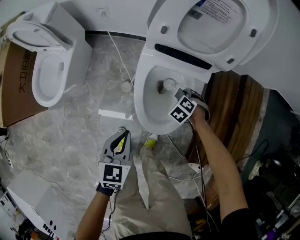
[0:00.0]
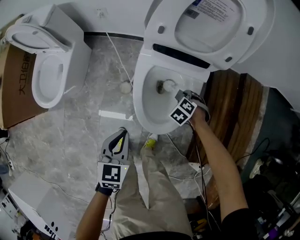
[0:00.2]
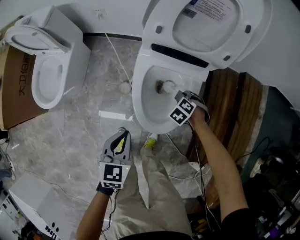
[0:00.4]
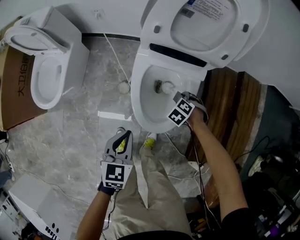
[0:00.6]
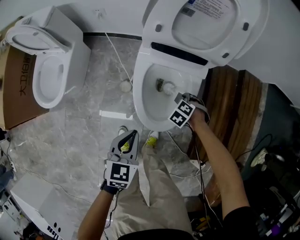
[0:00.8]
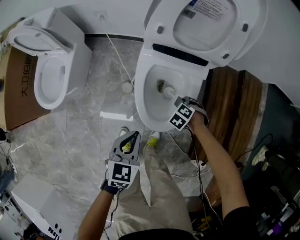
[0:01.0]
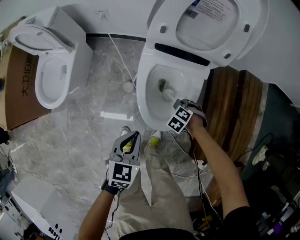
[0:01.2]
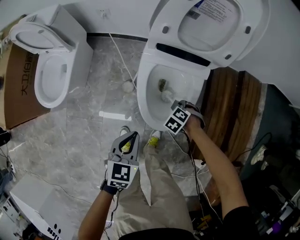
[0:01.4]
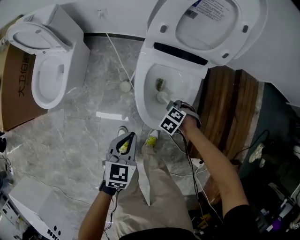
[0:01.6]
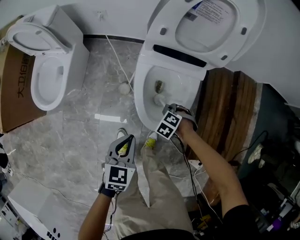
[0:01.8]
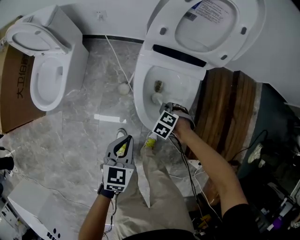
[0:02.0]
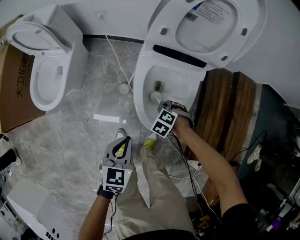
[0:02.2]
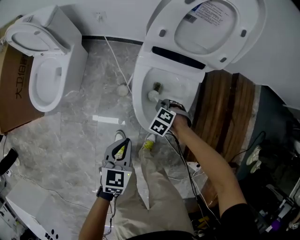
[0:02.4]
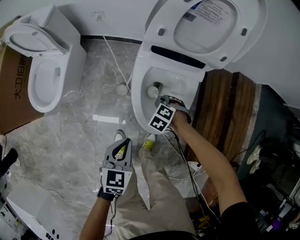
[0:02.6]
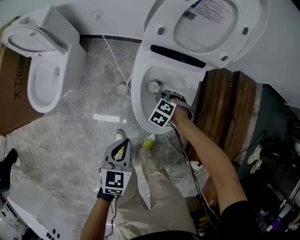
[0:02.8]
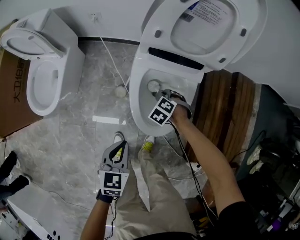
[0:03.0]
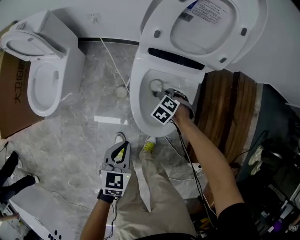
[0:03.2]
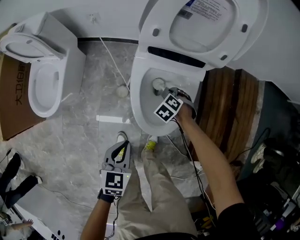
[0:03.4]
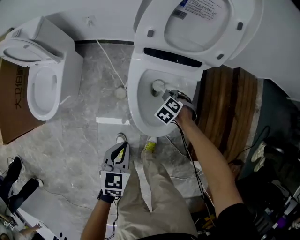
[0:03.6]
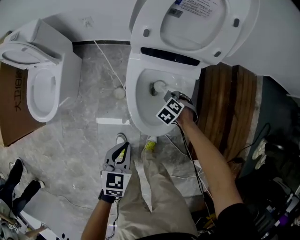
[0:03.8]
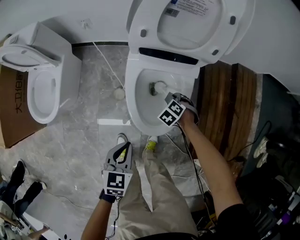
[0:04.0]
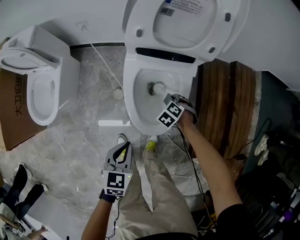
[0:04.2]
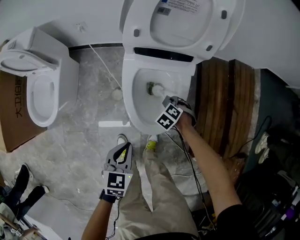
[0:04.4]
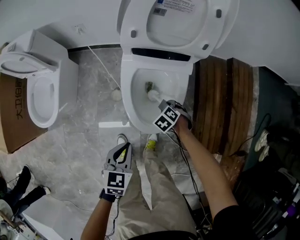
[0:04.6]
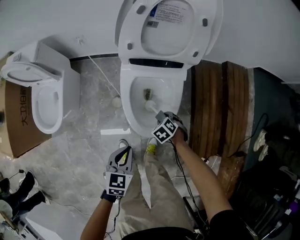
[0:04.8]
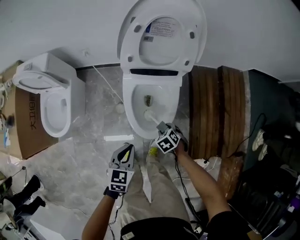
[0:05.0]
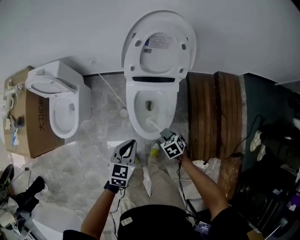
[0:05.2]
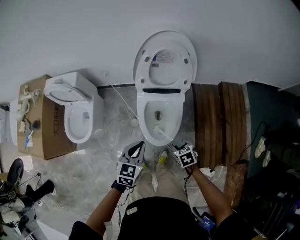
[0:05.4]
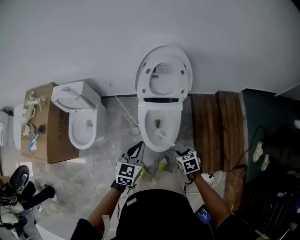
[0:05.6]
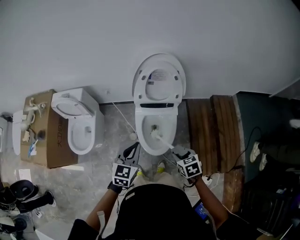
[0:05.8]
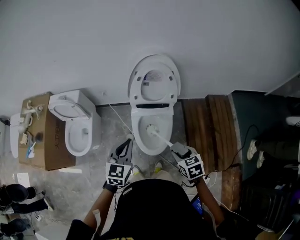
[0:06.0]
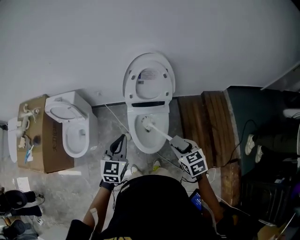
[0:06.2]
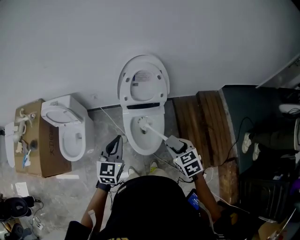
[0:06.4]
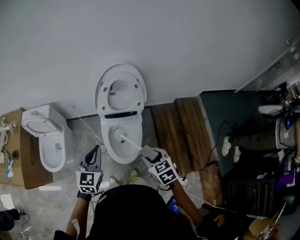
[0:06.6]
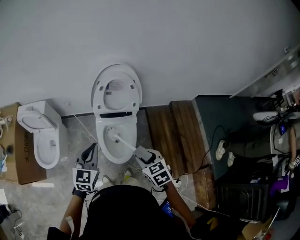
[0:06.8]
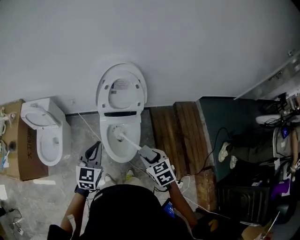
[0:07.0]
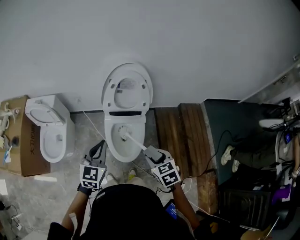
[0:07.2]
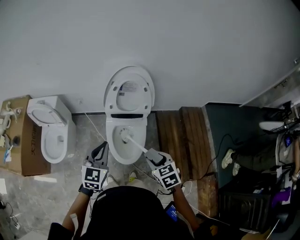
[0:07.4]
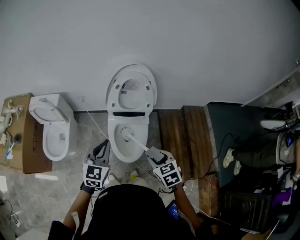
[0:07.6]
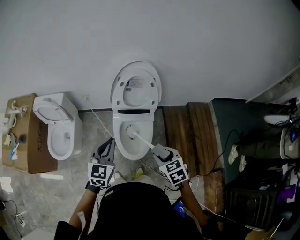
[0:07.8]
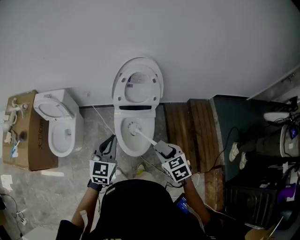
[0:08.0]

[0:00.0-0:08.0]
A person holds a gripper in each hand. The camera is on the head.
4.8 to 6.4 s: The left gripper heads upward, covering some 35 cm, and swivels about 30 degrees.

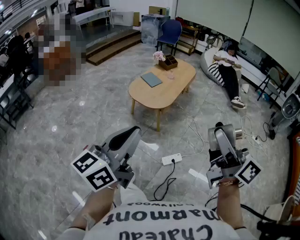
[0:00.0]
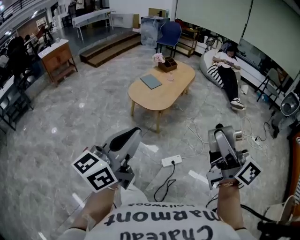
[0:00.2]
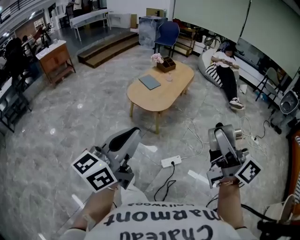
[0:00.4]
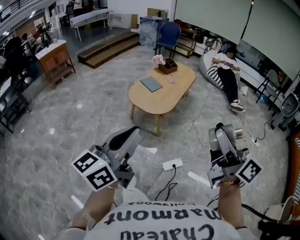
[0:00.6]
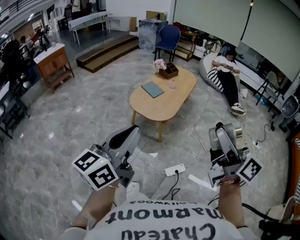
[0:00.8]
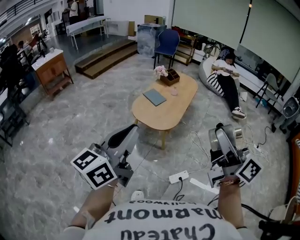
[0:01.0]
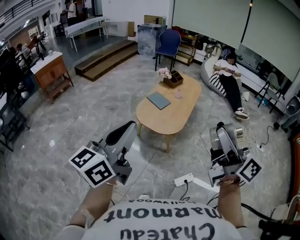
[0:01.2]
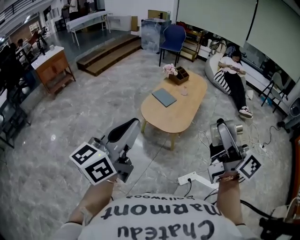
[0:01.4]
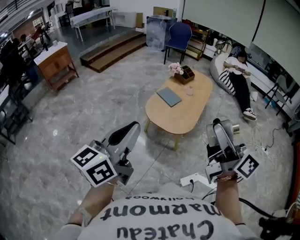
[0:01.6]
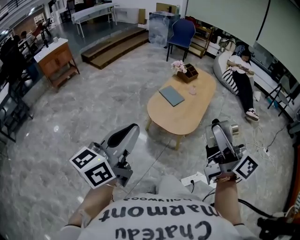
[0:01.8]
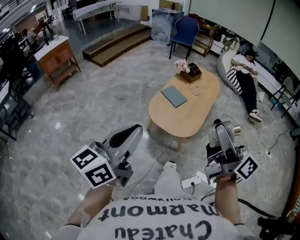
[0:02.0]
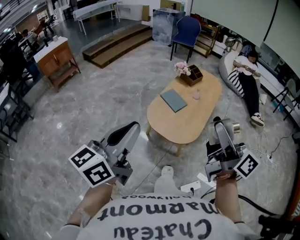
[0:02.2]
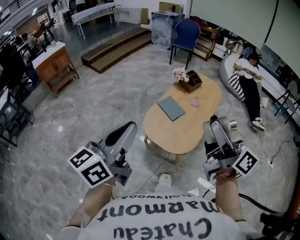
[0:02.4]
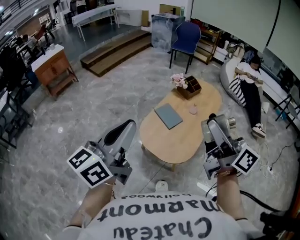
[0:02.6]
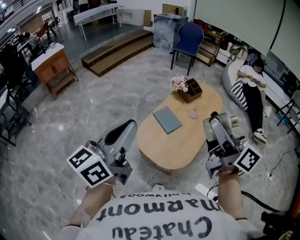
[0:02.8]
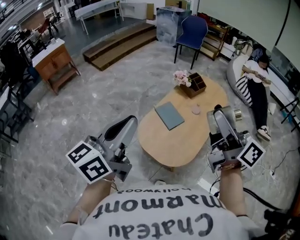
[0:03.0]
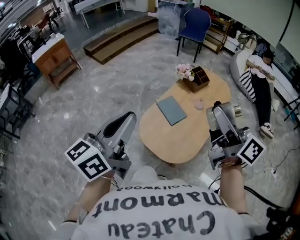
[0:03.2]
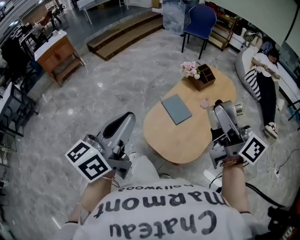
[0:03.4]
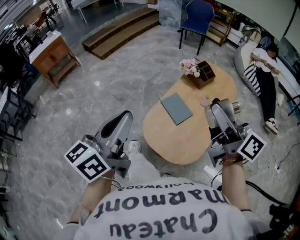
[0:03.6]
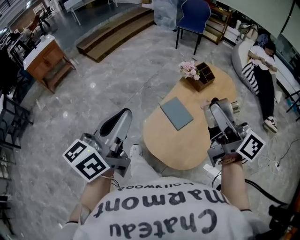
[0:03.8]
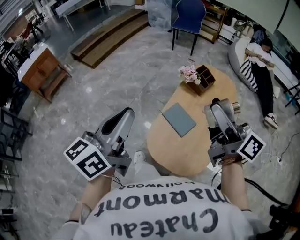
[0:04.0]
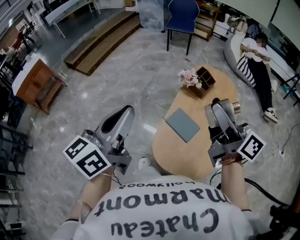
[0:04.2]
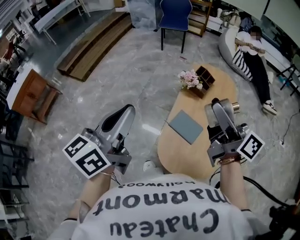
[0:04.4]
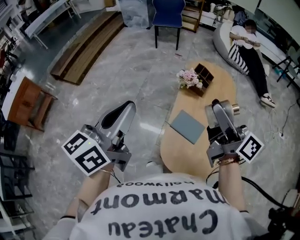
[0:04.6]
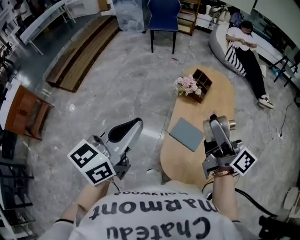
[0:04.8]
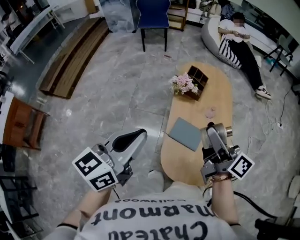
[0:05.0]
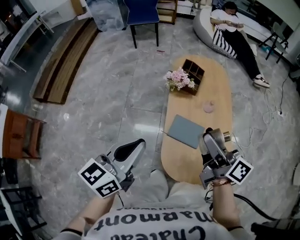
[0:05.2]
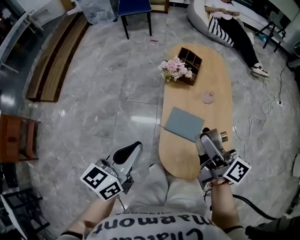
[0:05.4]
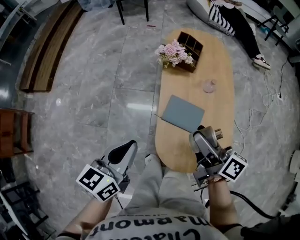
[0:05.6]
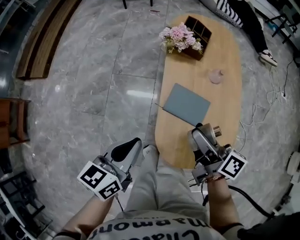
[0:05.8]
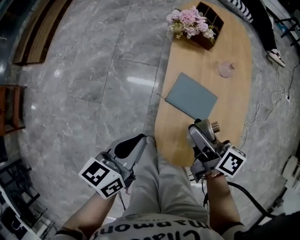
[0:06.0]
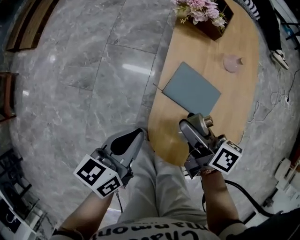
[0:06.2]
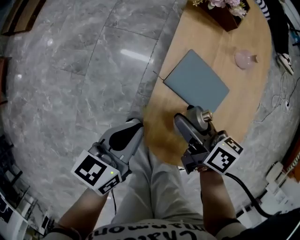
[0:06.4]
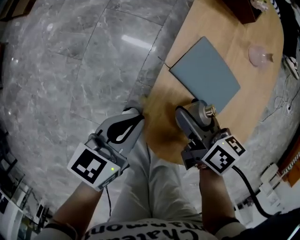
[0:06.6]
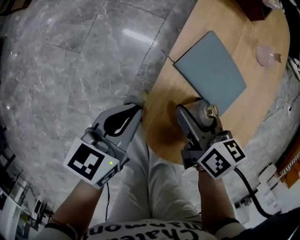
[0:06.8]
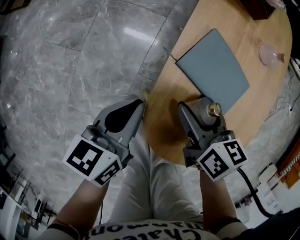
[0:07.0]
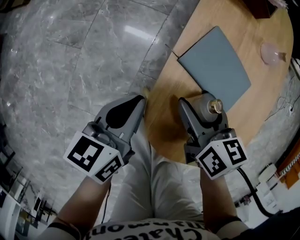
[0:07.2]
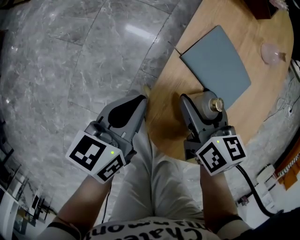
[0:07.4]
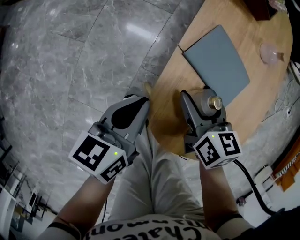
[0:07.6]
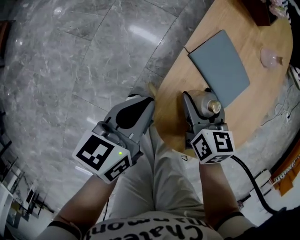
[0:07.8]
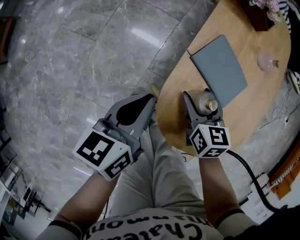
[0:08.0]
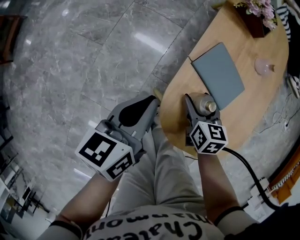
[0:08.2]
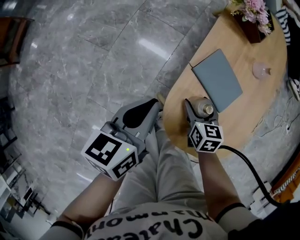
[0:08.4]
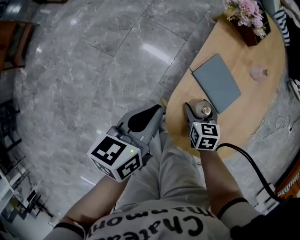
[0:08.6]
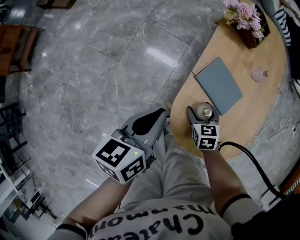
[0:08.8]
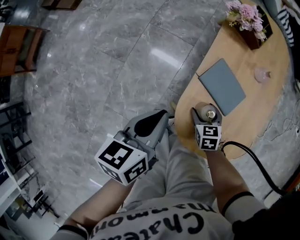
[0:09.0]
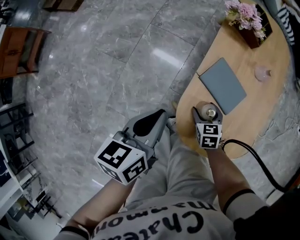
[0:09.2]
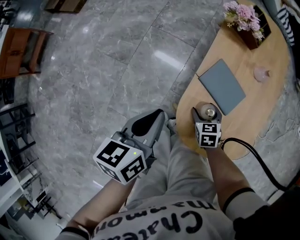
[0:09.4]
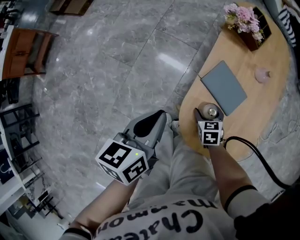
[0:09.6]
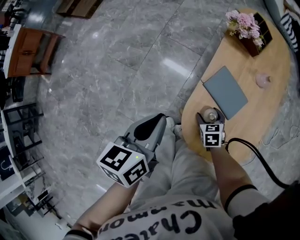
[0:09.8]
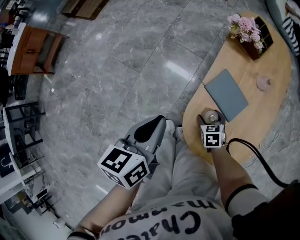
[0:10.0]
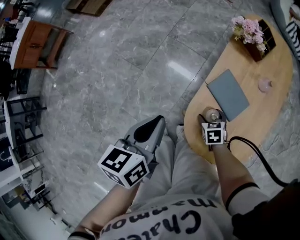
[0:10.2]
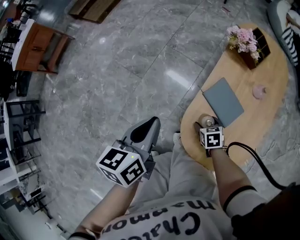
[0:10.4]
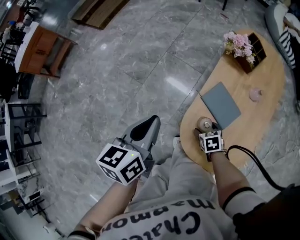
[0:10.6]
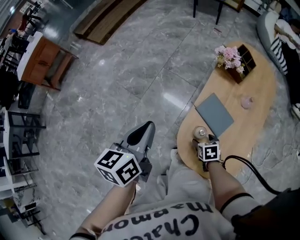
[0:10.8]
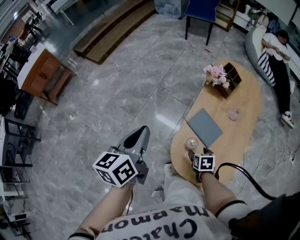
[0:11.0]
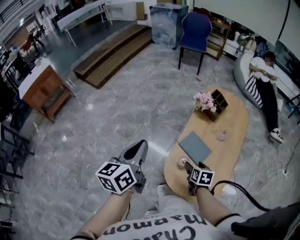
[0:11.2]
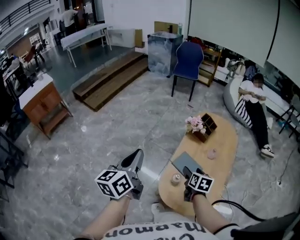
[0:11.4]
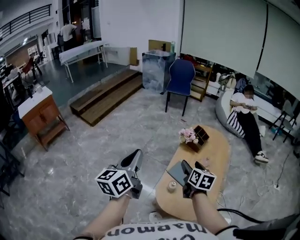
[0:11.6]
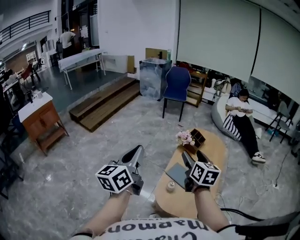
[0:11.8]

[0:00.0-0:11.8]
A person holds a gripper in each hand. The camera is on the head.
0.0 to 1.4 s: The grippers both shift forward and to the left by some 30 cm.
1.4 to 3.0 s: The grippers both shift forward by approximately 35 cm.
3.0 to 4.4 s: The right gripper shifts some 30 cm forward and to the left, while the left gripper moves forward, approximately 30 cm.
4.4 to 6.0 s: Both grippers move downward, about 35 cm. The left gripper rotates about 30 degrees. The right gripper tips its fingers downward by about 30 degrees.
6.0 to 7.4 s: Both grippers move downward, some 20 cm. The right gripper changes its angle by roughly 40 degrees.
7.4 to 8.8 s: The right gripper swivels roughly 30 degrees. Meanwhile the left gripper is displaced upward by some 15 cm.
8.8 to 10.4 s: The left gripper moves upward, approximately 10 cm.
10.4 to 11.8 s: The left gripper heads upward, covering approximately 30 cm, and points its fingers about 40 degrees further upward. Meanwhile the right gripper travels upward by some 50 cm, and tilts its fingers about 50 degrees upward.

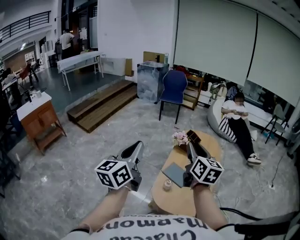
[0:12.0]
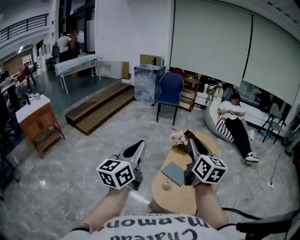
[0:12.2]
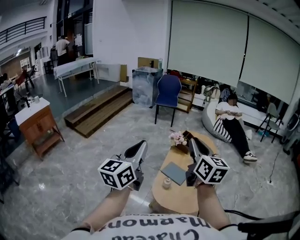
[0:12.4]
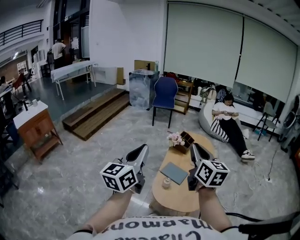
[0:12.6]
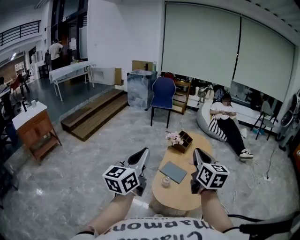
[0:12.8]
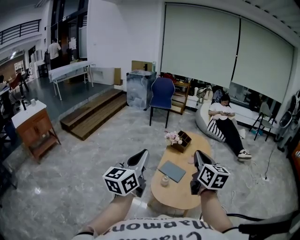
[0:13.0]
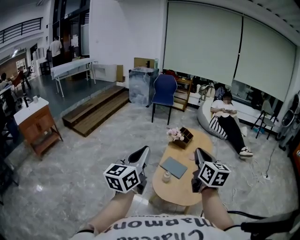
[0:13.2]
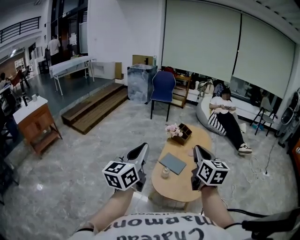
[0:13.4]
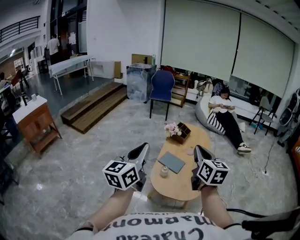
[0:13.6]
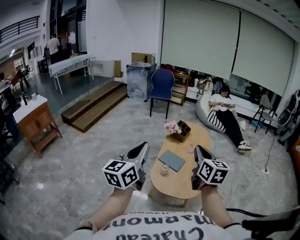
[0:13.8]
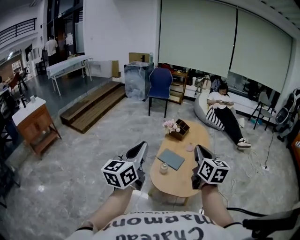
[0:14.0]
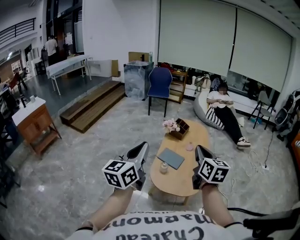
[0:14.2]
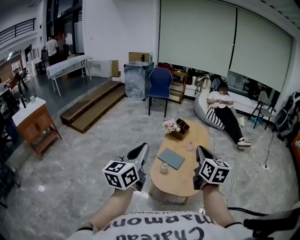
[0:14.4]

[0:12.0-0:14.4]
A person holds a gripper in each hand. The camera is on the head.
12.0 to 13.2 s: The grippers both shift backward by some 15 cm.
13.2 to 14.4 s: The right gripper moves some 5 cm.

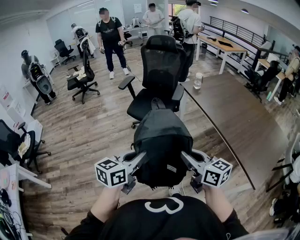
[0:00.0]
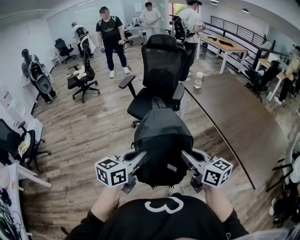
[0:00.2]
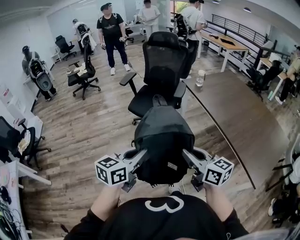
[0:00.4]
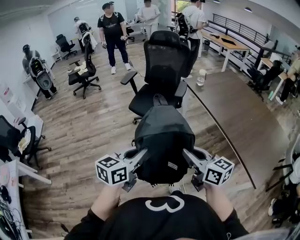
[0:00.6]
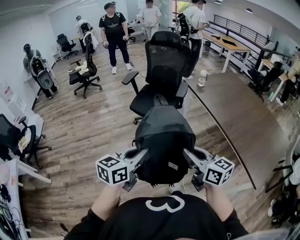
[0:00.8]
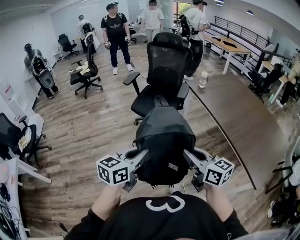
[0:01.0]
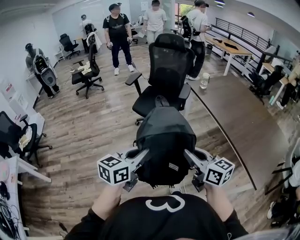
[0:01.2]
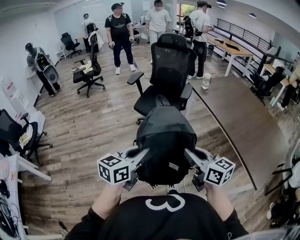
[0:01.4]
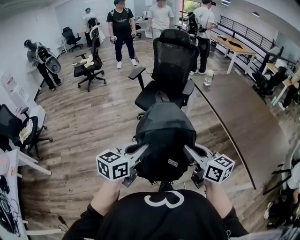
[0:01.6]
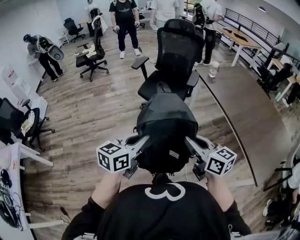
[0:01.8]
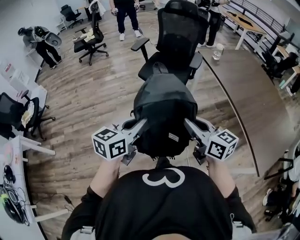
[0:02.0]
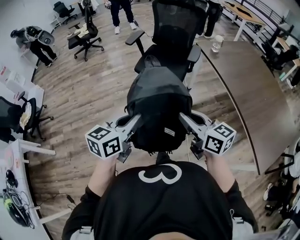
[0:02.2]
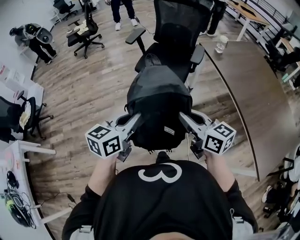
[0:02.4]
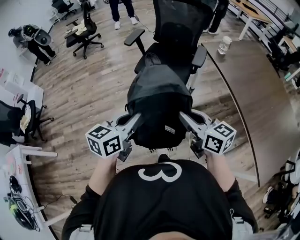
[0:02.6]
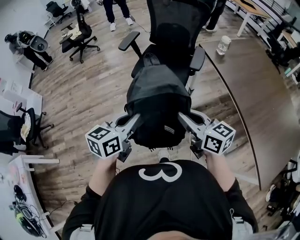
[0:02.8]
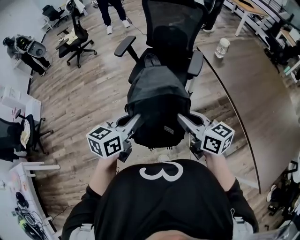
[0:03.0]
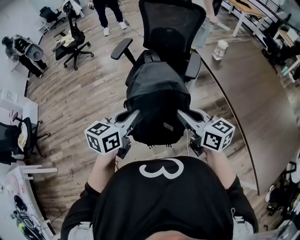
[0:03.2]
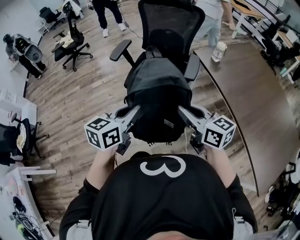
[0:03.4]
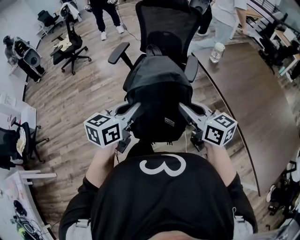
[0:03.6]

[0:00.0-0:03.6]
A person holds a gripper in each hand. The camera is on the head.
0.0 to 1.8 s: Both grippers move to the left, approximately 5 cm.
1.8 to 3.6 s: The two grippers go approximately 35 cm forward.
